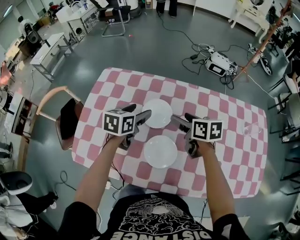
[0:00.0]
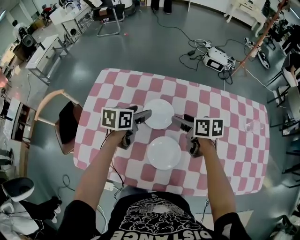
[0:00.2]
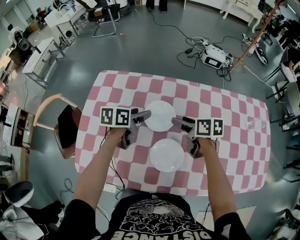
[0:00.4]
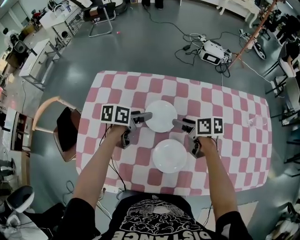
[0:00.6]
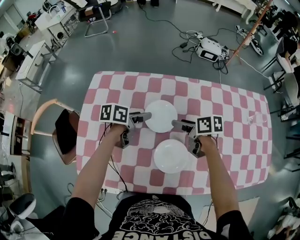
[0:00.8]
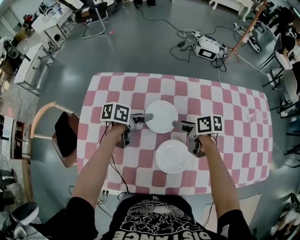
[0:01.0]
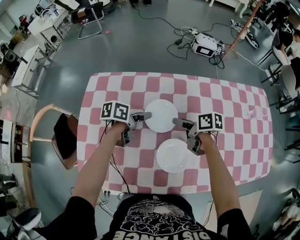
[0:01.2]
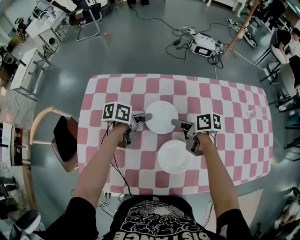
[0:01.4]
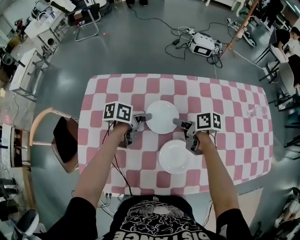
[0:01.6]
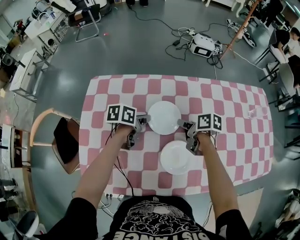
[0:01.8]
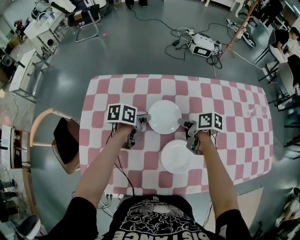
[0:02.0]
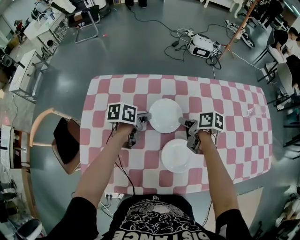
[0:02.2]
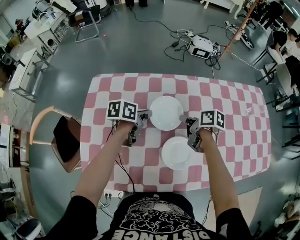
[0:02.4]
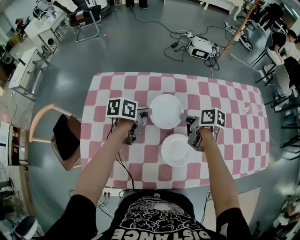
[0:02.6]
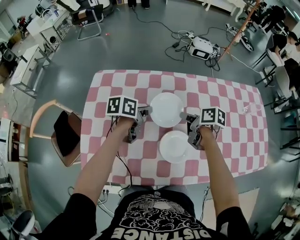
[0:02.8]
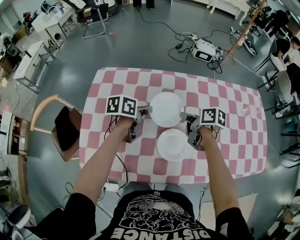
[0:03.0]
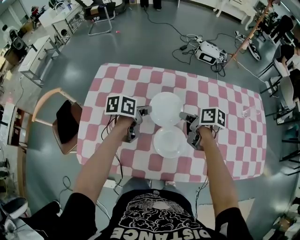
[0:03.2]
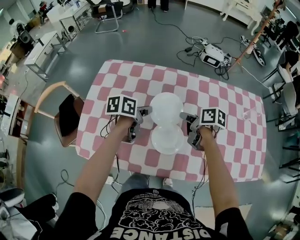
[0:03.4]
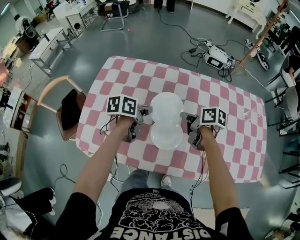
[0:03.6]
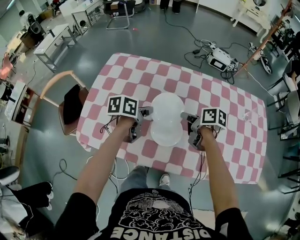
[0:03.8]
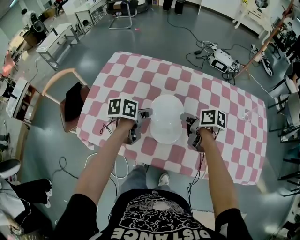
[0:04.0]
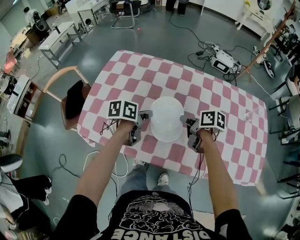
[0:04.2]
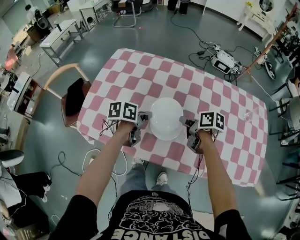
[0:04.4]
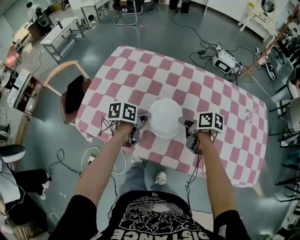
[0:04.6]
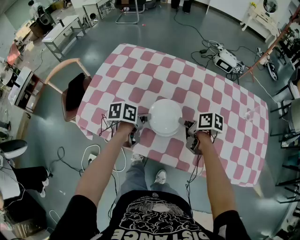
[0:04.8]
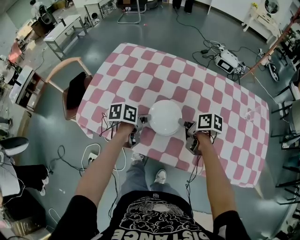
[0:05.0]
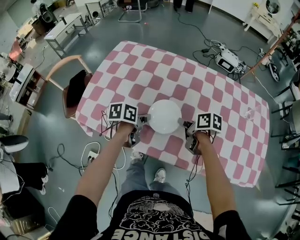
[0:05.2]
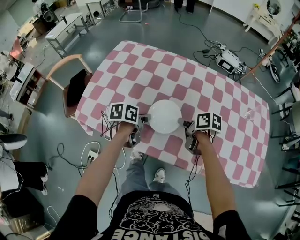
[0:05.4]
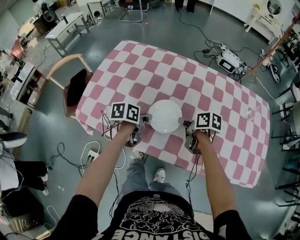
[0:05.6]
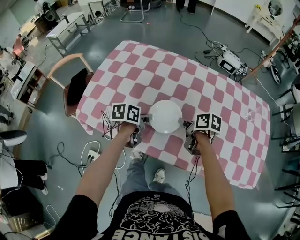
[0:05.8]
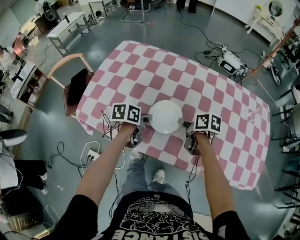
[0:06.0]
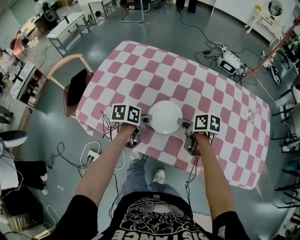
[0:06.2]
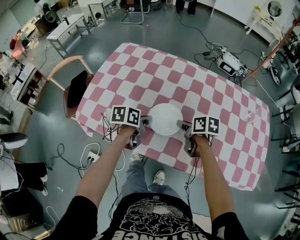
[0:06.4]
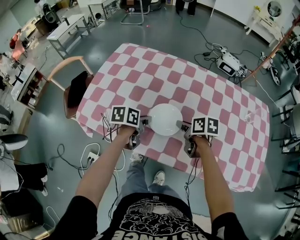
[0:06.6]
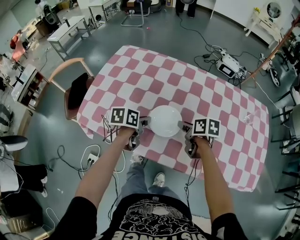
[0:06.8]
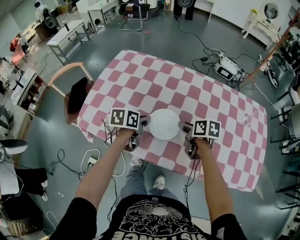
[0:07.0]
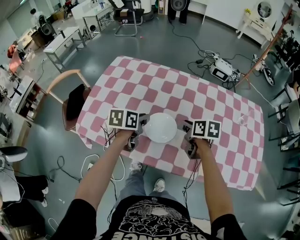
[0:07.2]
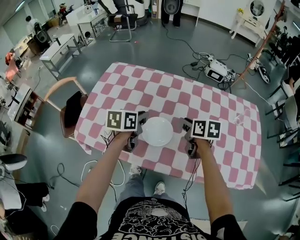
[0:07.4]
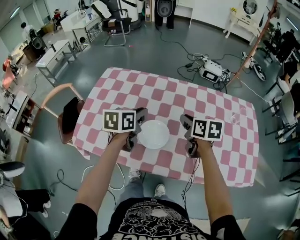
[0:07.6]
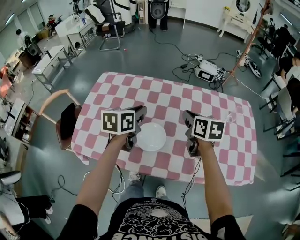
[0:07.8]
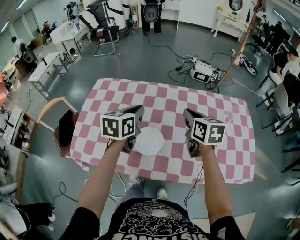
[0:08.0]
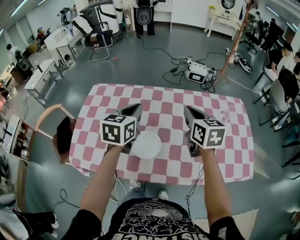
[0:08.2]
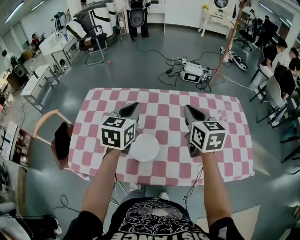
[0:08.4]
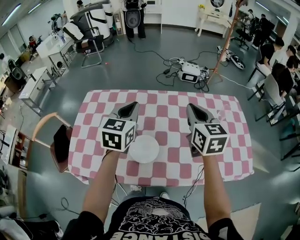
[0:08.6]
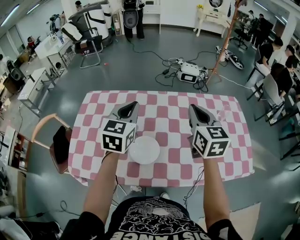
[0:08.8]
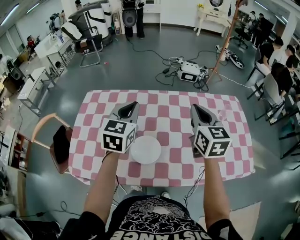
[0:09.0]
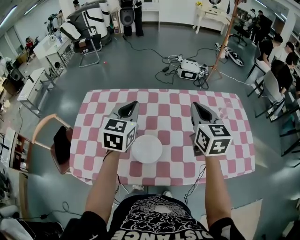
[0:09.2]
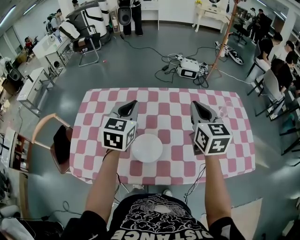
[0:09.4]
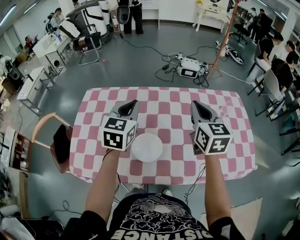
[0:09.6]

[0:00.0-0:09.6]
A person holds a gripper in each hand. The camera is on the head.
0:00.0 to 0:01.6: Both grippers travel together downward, about 10 cm. The left gripper rotates about 40 degrees, and closes its fingers; the right gripper rotates about 30 degrees, and closes.
0:01.6 to 0:03.2: The left gripper moves upward and backward, approximately 10 cm, and closes up. Meanwhile the right gripper moves upward, approximately 5 cm.
0:03.2 to 0:04.8: Both grippers travel together backward, approximately 15 cm.
0:04.8 to 0:06.4: The grippers move only a little.
0:06.4 to 0:08.0: The right gripper moves upward and to the right, approximately 20 cm, and swivels roughly 40 degrees. Meanwhile the left gripper shifts about 25 cm upward and forward, and rotates about 40 degrees.
0:08.0 to 0:09.6: The left gripper shifts by roughly 5 cm, and rotates some 20 degrees. Meanwhile the right gripper goes roughly 5 cm upward, and swivels some 20 degrees.

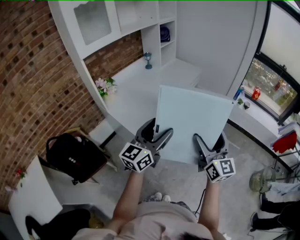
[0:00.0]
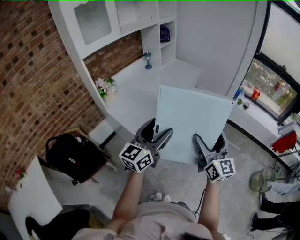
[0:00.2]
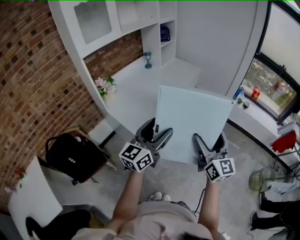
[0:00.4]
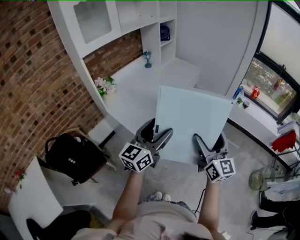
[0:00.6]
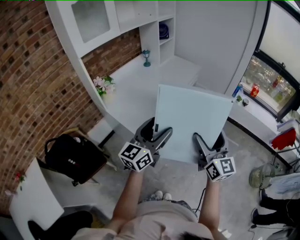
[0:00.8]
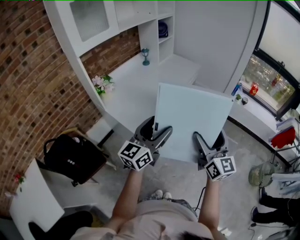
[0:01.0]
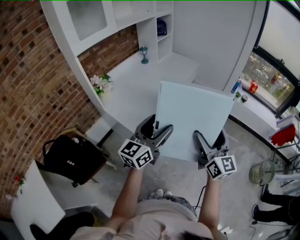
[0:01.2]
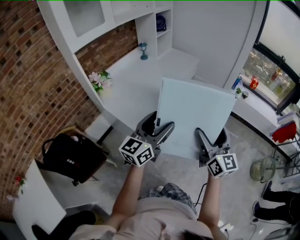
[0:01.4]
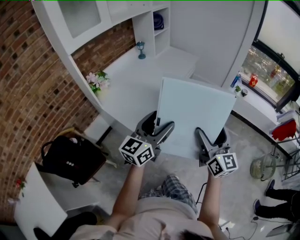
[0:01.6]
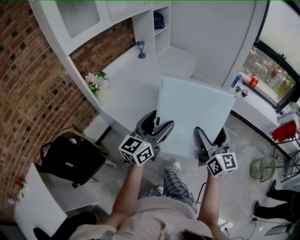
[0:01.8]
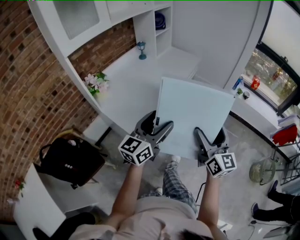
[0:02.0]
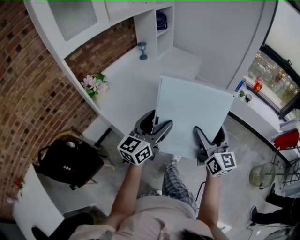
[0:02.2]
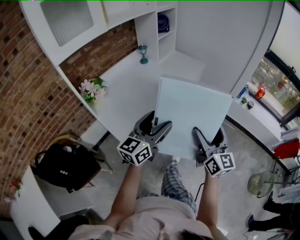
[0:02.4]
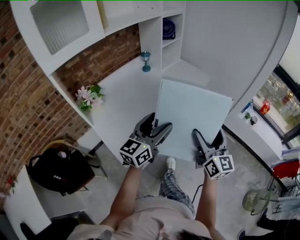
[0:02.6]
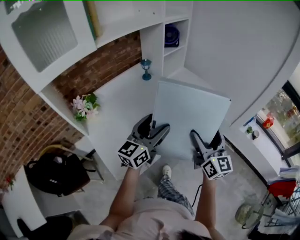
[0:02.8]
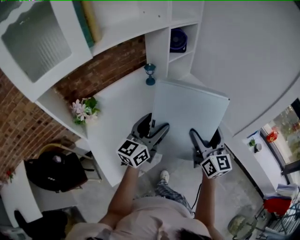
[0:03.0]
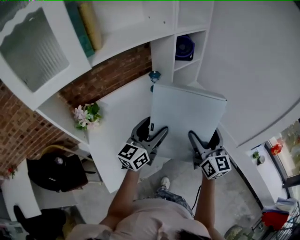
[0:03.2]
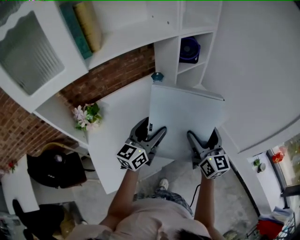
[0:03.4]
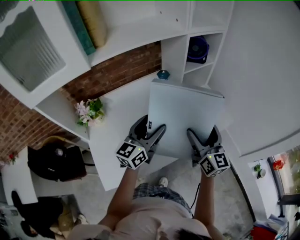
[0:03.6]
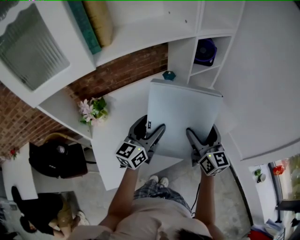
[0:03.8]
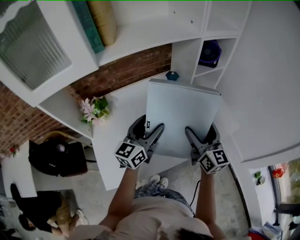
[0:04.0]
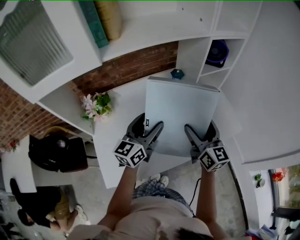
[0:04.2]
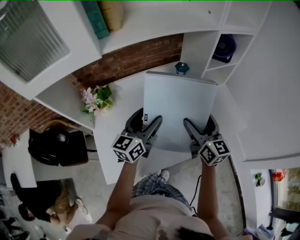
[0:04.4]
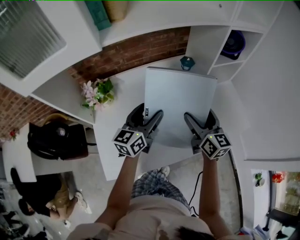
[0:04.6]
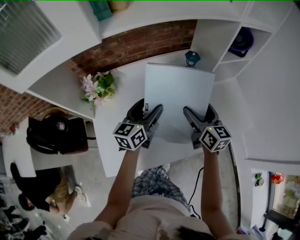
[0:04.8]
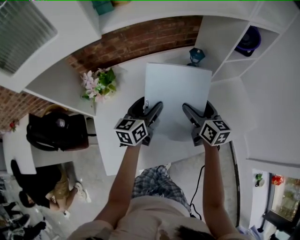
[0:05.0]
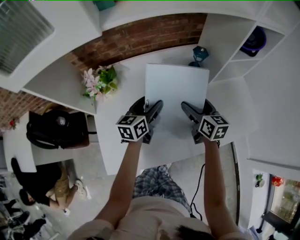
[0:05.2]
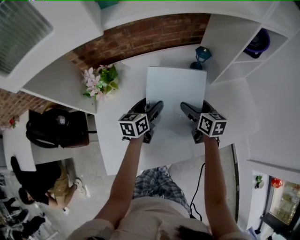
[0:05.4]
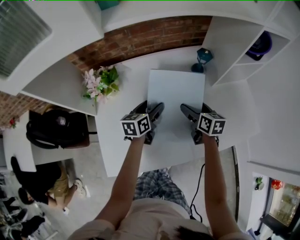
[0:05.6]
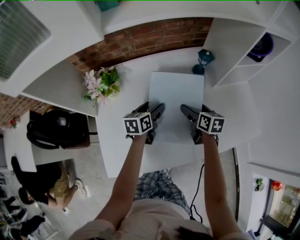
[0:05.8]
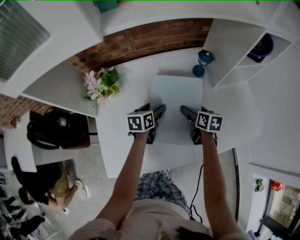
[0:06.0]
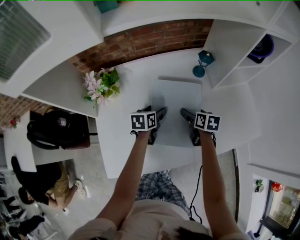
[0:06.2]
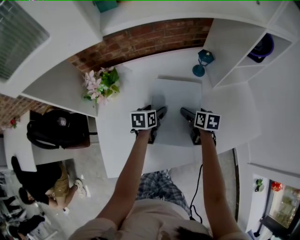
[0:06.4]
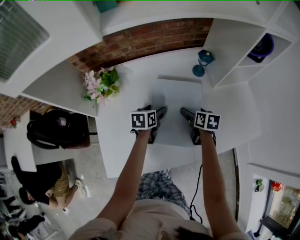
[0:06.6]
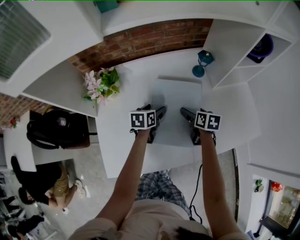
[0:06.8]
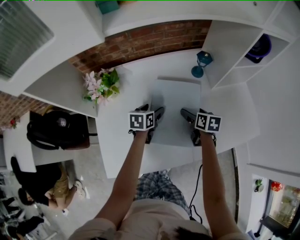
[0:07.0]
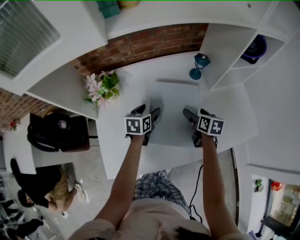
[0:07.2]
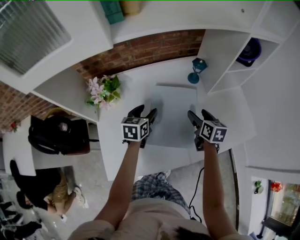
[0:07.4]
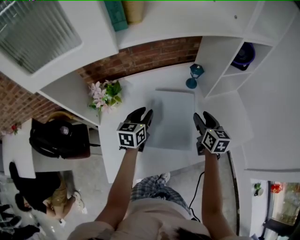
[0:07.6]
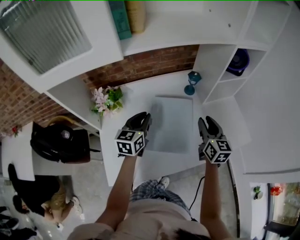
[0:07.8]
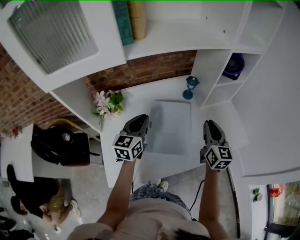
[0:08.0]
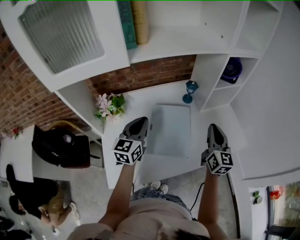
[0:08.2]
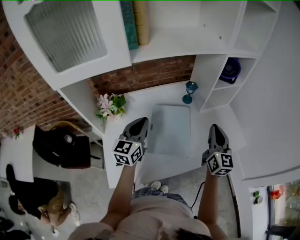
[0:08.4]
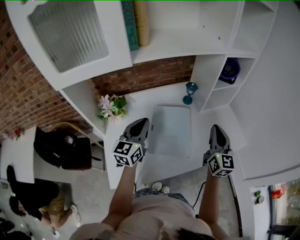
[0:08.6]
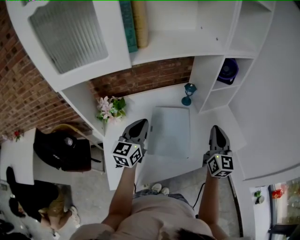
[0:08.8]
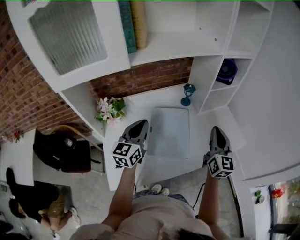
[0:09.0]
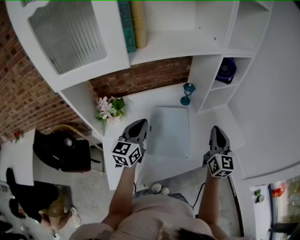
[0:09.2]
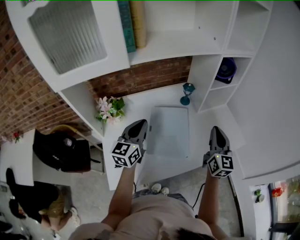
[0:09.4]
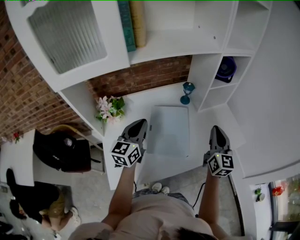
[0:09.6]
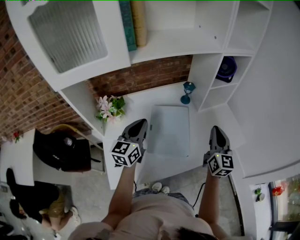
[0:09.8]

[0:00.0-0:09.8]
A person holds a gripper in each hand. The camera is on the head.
0:00.0 to 0:01.4: There are only small adjustments of the grippers.
0:01.4 to 0:02.8: The two grippers go approximately 35 cm forward.
0:02.8 to 0:04.2: The left gripper changes place by some 20 cm, and rotates about 30 degrees; the right gripper shifts by roughly 30 cm, and swivels approximately 30 degrees.
0:04.2 to 0:05.6: The two grippers go approximately 25 cm downward and forward. The right gripper angles its fingers downward, by roughly 30 degrees. The left gripper turns by about 30 degrees.
0:05.6 to 0:07.0: There are only small adjustments of the grippers.
0:07.0 to 0:08.4: The right gripper shifts roughly 30 cm upward and backward, points its fingers some 40 degrees further upward, and closes. The left gripper moves upward, some 25 cm, tilts its fingers some 40 degrees upward, and closes up.
0:08.4 to 0:09.8: The grippers stay close to where they were, moving slightly.

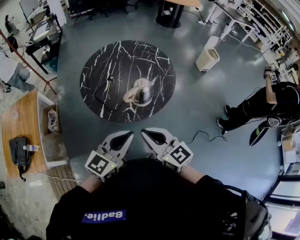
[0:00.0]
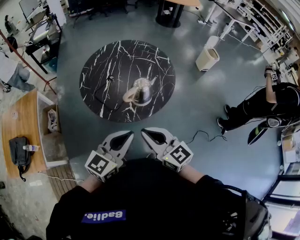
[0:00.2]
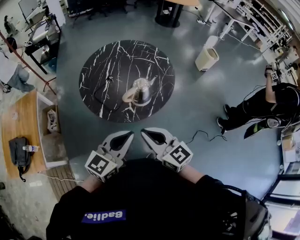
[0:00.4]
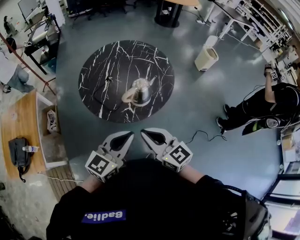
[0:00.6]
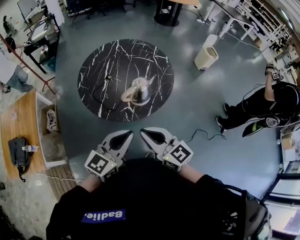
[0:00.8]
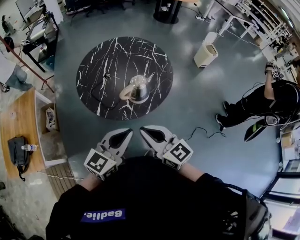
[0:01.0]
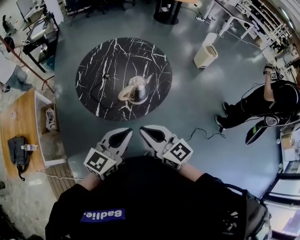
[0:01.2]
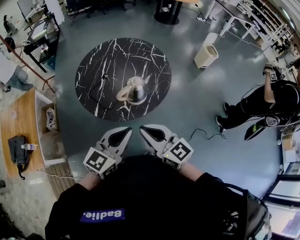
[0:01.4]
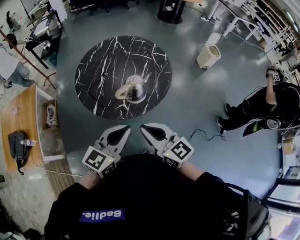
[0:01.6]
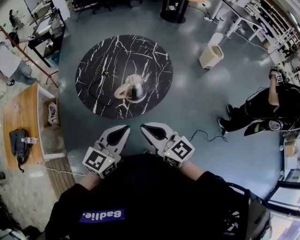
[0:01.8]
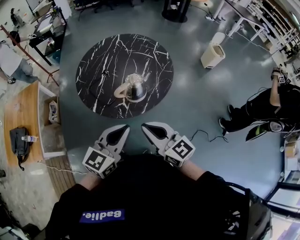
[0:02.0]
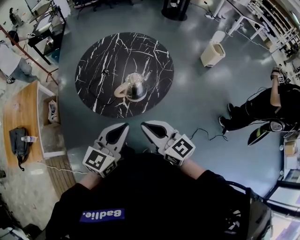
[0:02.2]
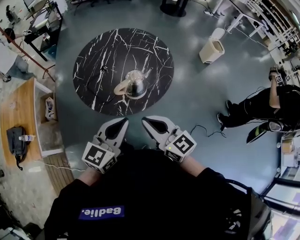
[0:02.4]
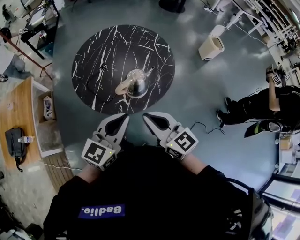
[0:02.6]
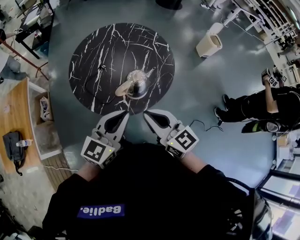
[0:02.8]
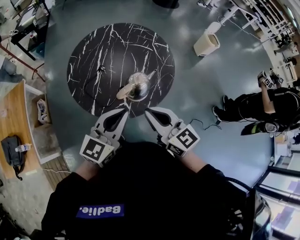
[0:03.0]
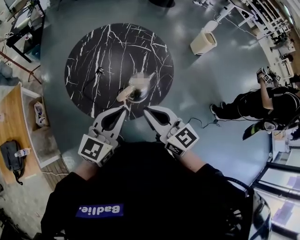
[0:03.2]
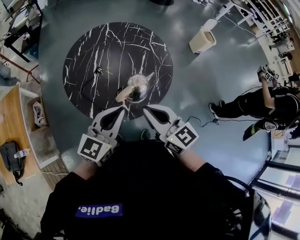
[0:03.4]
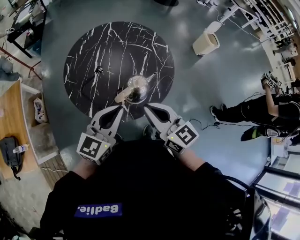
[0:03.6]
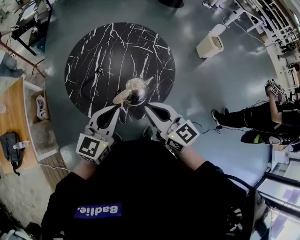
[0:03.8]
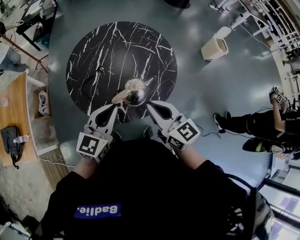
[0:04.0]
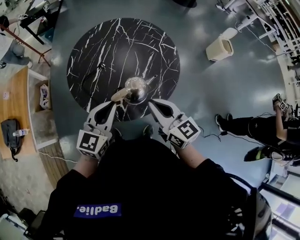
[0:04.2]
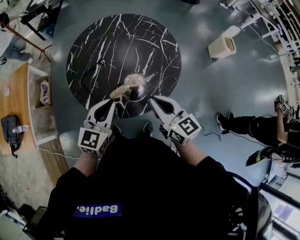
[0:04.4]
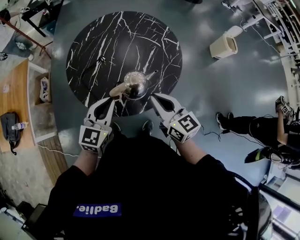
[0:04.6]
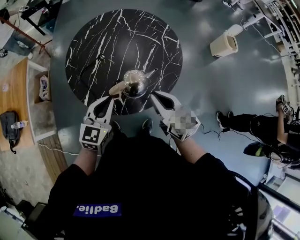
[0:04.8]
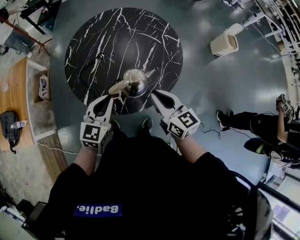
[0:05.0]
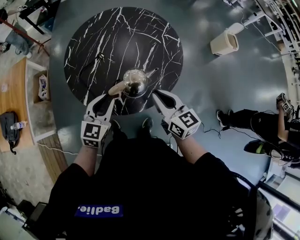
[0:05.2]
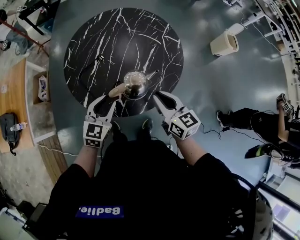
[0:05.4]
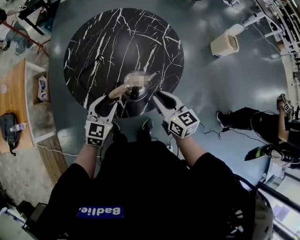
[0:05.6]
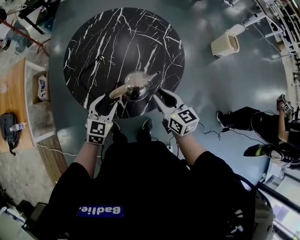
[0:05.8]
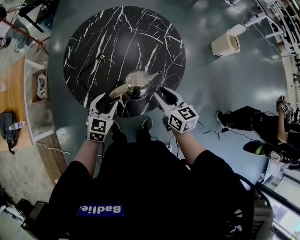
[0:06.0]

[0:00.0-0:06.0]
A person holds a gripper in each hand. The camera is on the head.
0:00.0 to 0:01.6: The two grippers go roughly 5 cm to the right.
0:01.6 to 0:03.0: Both grippers travel together forward, roughly 10 cm.
0:03.0 to 0:04.4: The right gripper travels forward, to the right and downward by some 15 cm; the left gripper goes roughly 10 cm forward and downward, and rotates approximately 20 degrees.
0:04.4 to 0:06.0: Both grippers move downward, approximately 15 cm. The right gripper opens up, while the left gripper opens up.
